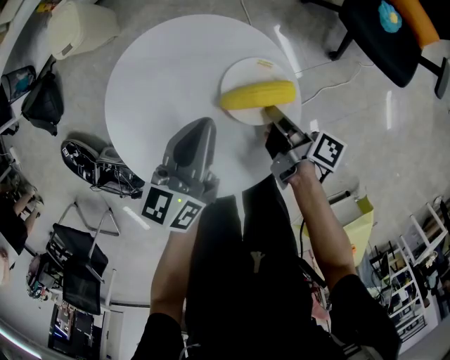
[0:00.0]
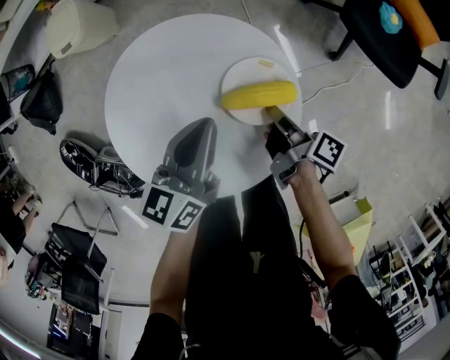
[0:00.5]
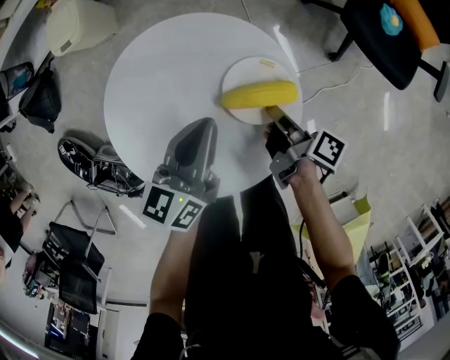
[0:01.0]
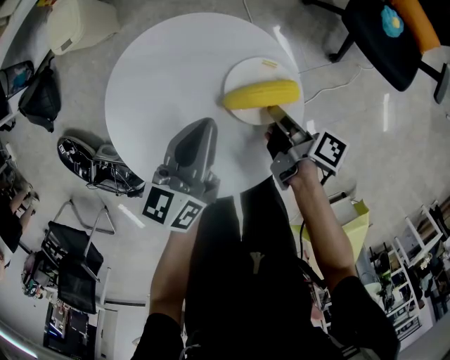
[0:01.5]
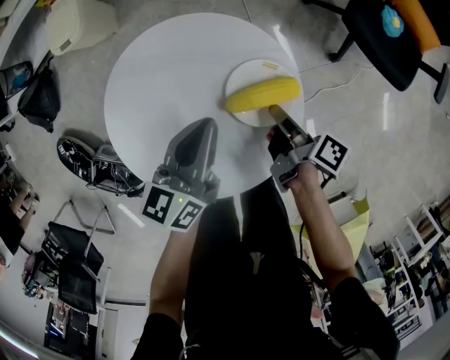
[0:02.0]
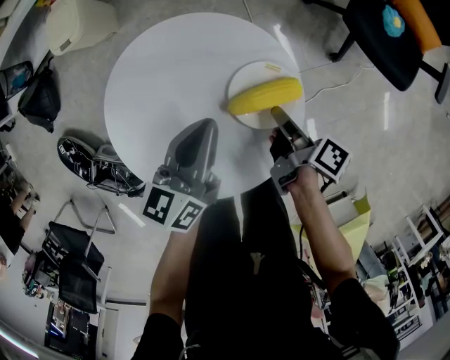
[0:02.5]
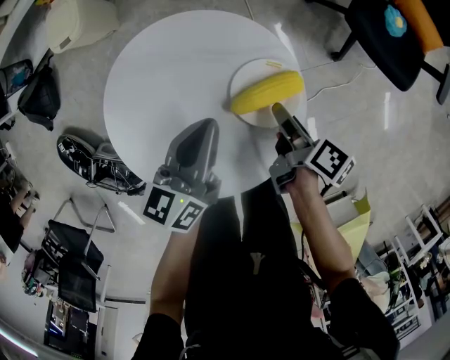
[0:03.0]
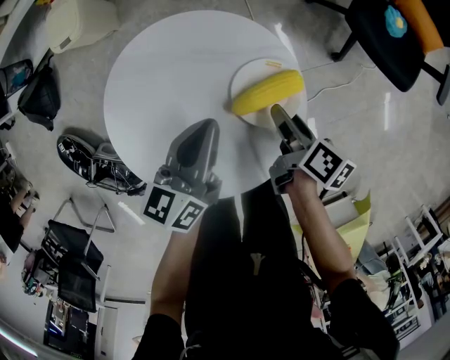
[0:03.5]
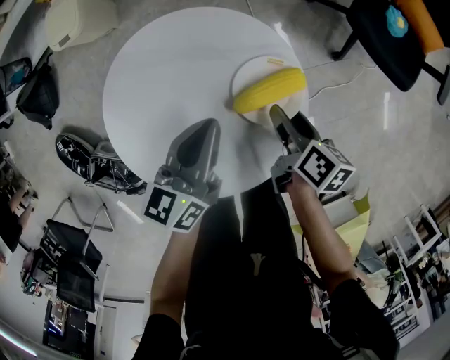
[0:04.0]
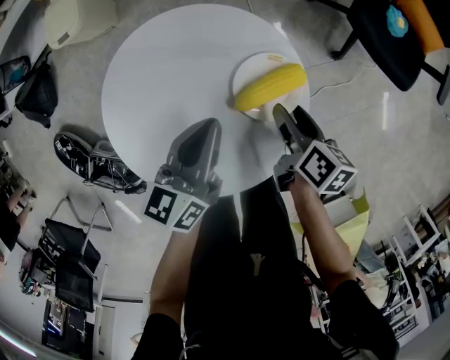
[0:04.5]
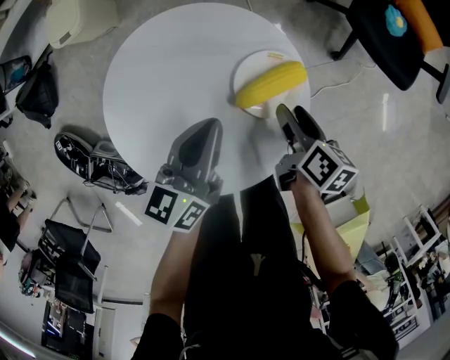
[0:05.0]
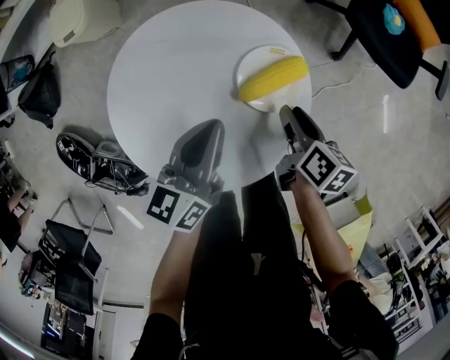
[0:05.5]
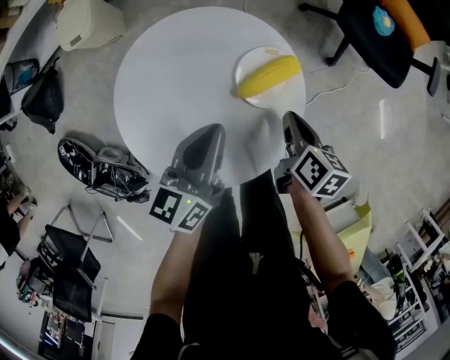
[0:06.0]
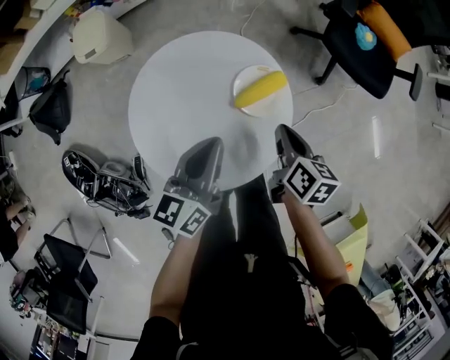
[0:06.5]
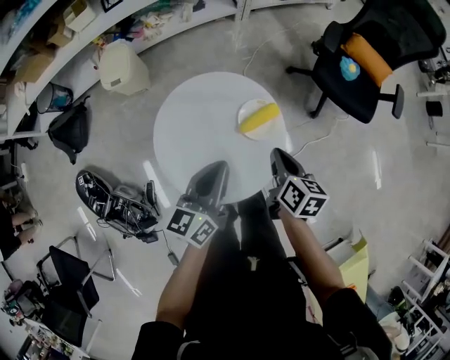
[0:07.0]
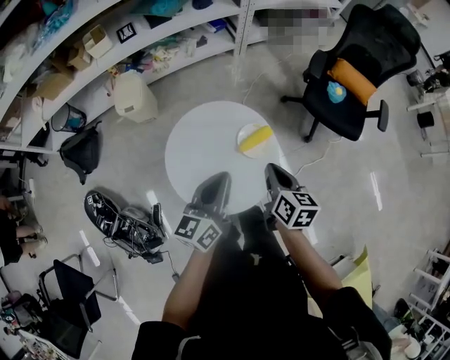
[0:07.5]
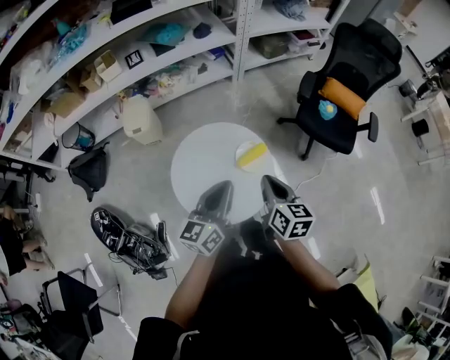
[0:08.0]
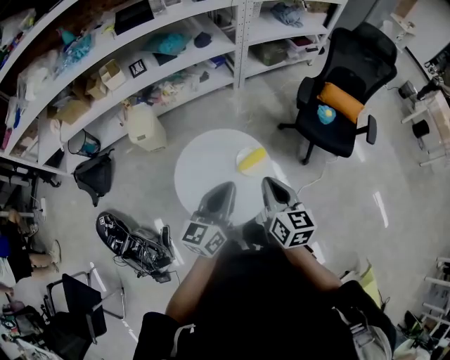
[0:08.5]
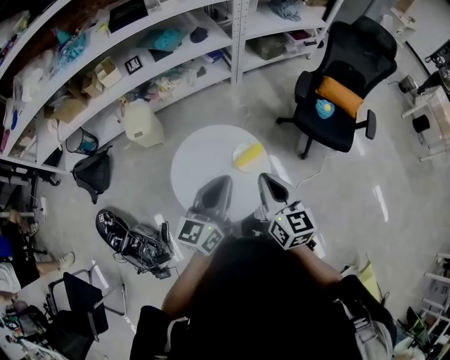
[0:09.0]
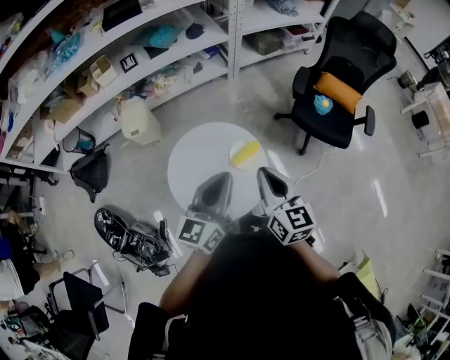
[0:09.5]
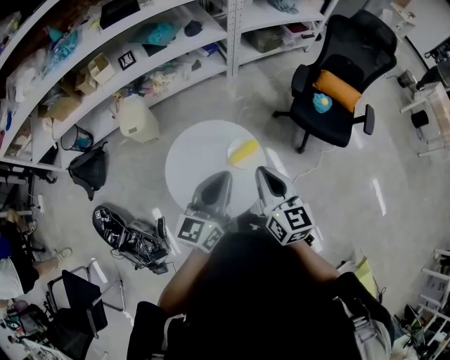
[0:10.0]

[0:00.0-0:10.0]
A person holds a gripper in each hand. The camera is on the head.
0:04.0 to 0:06.0: The left gripper changes place by about 5 cm.
0:06.0 to 0:08.0: The left gripper goes about 25 cm upward.
0:08.0 to 0:10.0: The left gripper moves upward, about 5 cm.

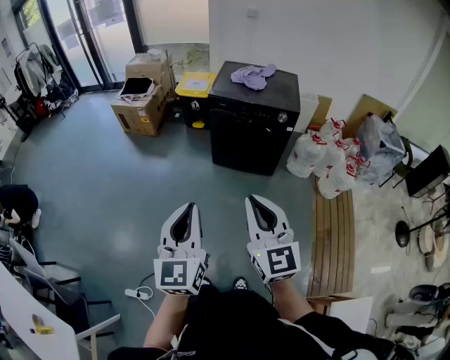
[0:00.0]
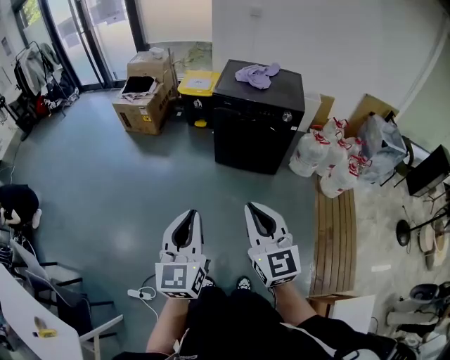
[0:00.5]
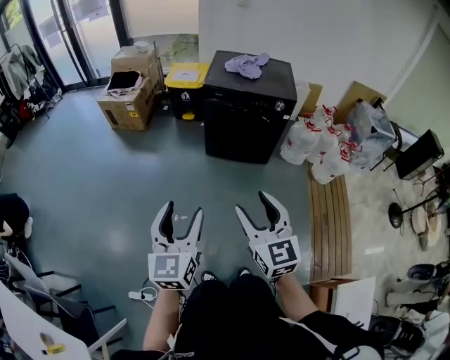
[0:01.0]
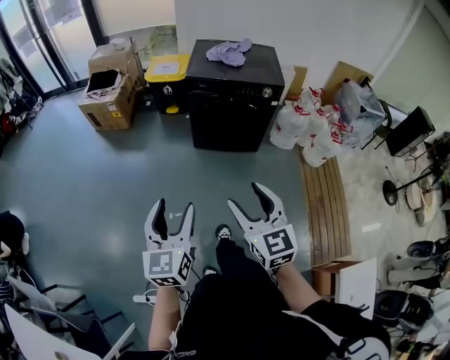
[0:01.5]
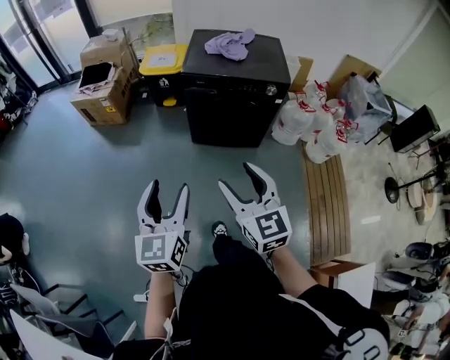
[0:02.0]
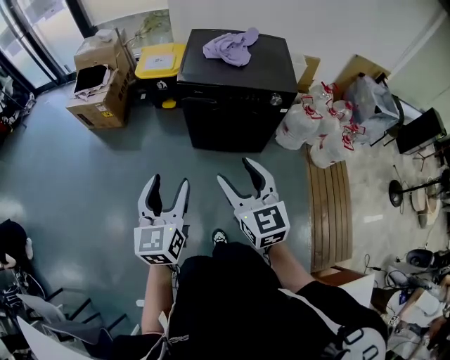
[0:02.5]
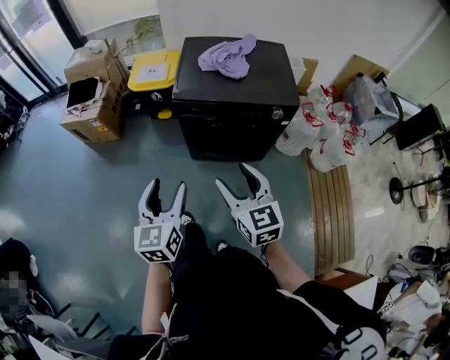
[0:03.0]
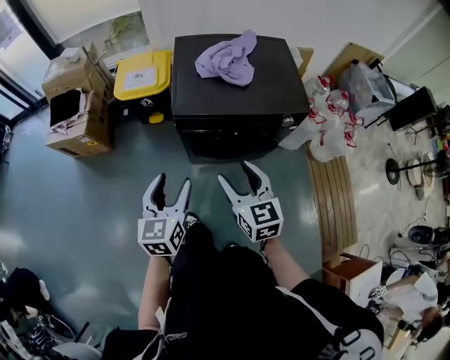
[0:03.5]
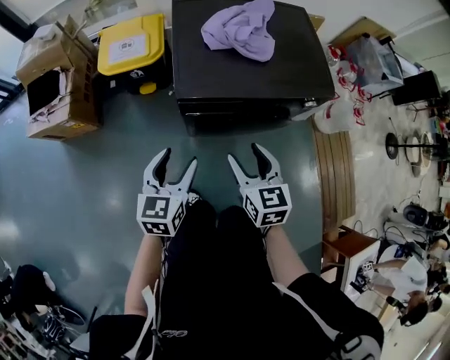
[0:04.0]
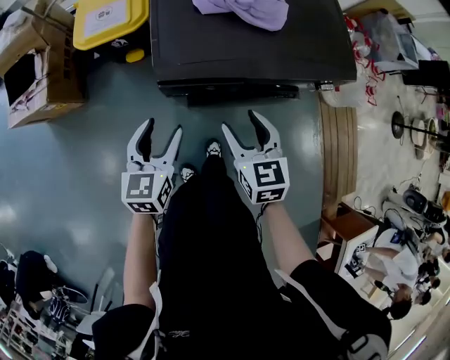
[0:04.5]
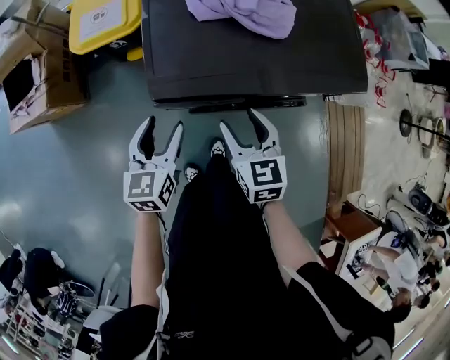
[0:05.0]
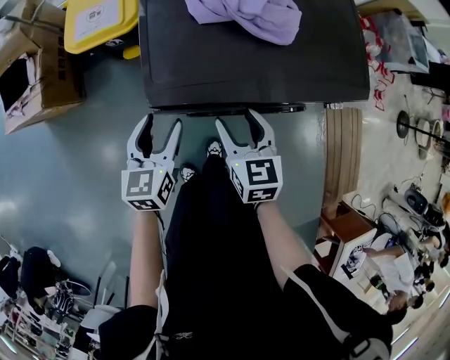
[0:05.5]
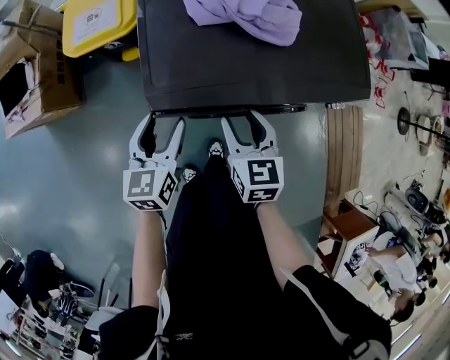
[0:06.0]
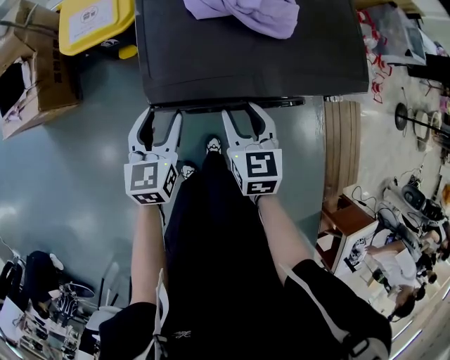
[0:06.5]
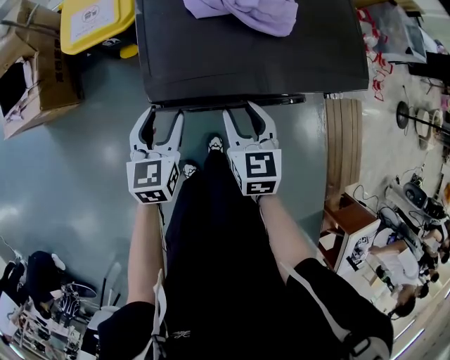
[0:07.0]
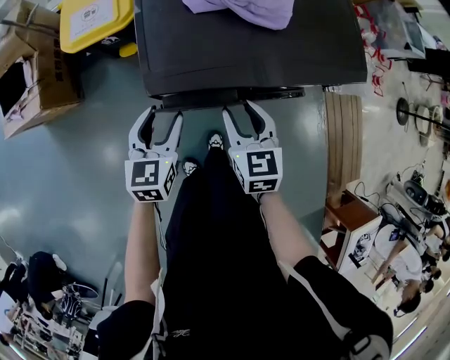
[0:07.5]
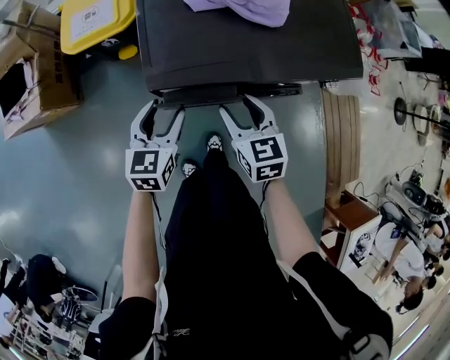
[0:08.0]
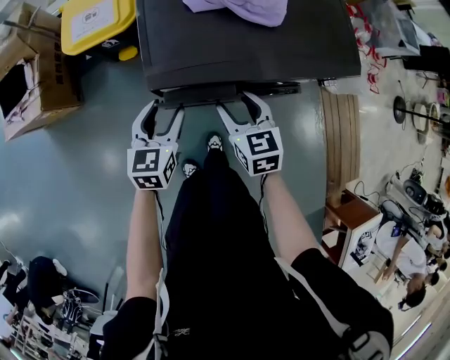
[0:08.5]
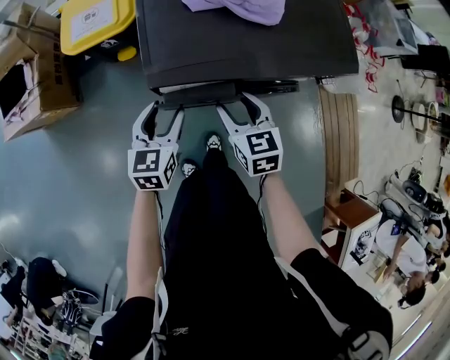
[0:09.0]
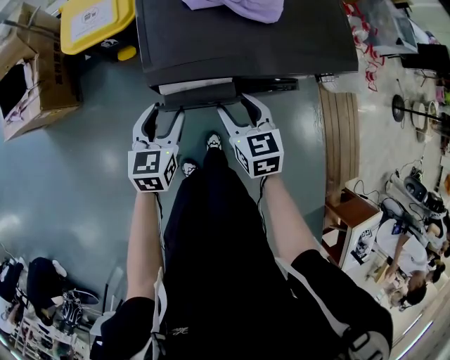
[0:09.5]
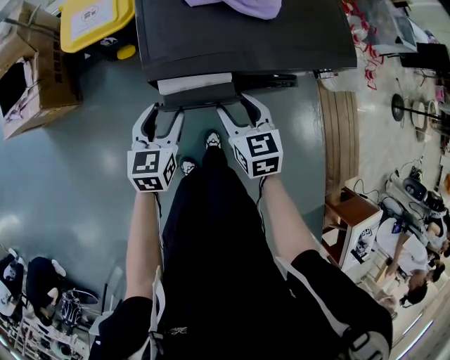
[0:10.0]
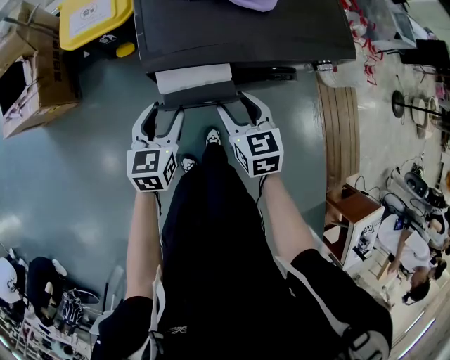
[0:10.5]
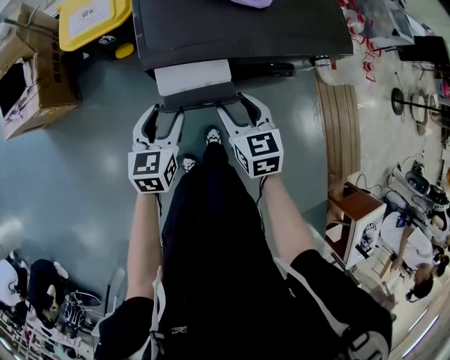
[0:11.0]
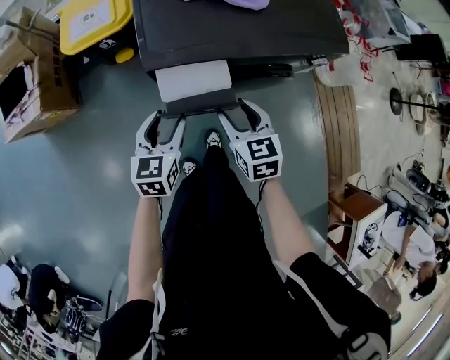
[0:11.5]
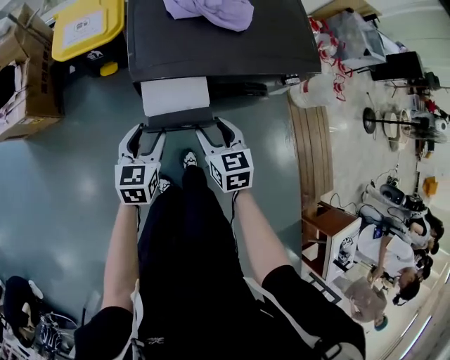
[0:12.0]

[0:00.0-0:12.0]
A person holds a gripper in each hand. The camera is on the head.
0:00.0 to 0:02.0: The left gripper shifts approximately 20 cm forward, and opens; the right gripper is displaced forward and downward by approximately 20 cm, and opens its fingers.
0:02.0 to 0:04.0: The pair of grippers is taken forward, some 50 cm. The left gripper changes its angle by about 30 degrees. Meanwhile the right gripper rotates roughly 30 degrees.
0:04.0 to 0:06.0: The two grippers go approximately 20 cm forward and downward.
0:06.0 to 0:10.0: There are only small adjustments of the grippers.
0:10.0 to 0:12.0: Both grippers travel together backward, approximately 5 cm.

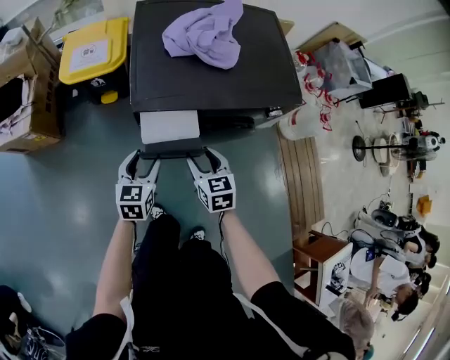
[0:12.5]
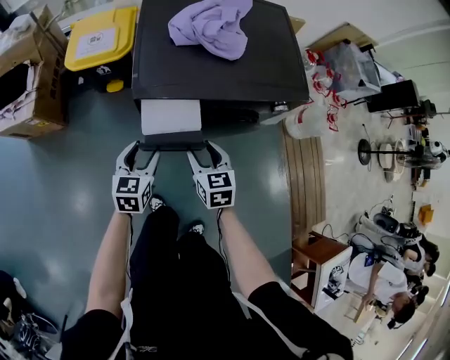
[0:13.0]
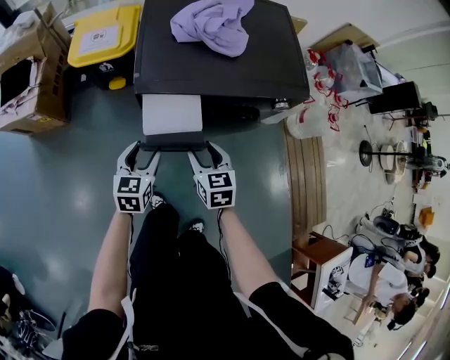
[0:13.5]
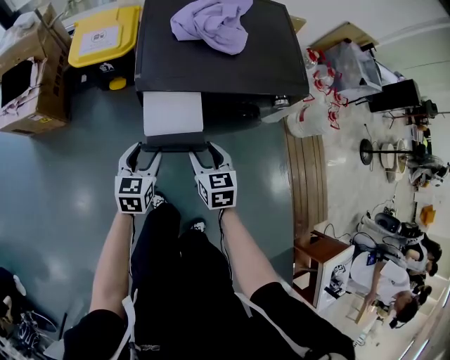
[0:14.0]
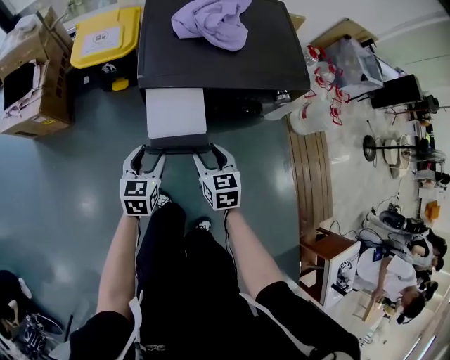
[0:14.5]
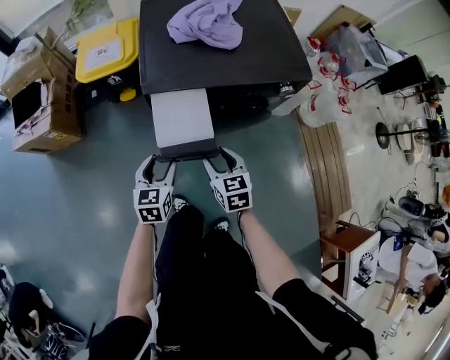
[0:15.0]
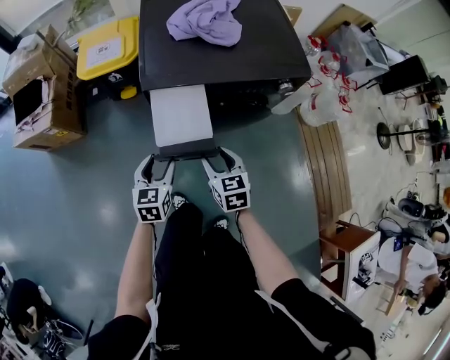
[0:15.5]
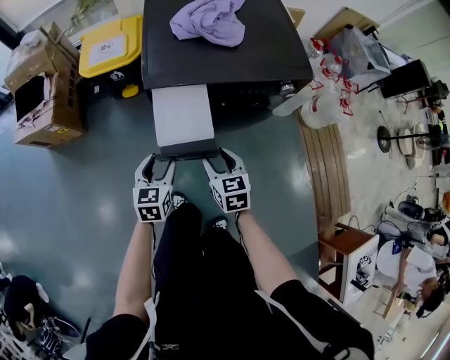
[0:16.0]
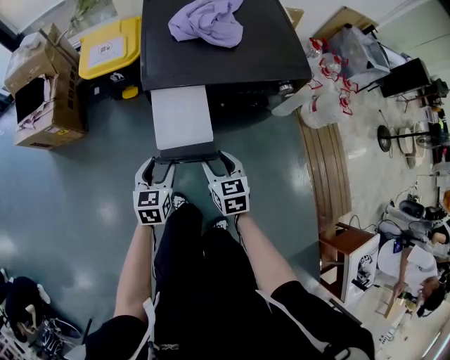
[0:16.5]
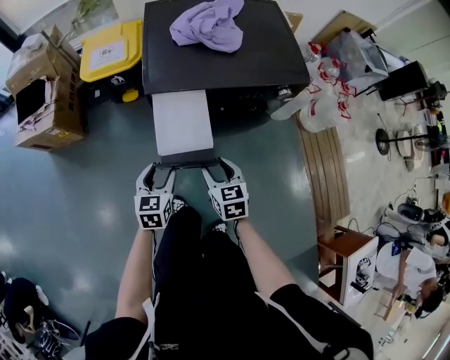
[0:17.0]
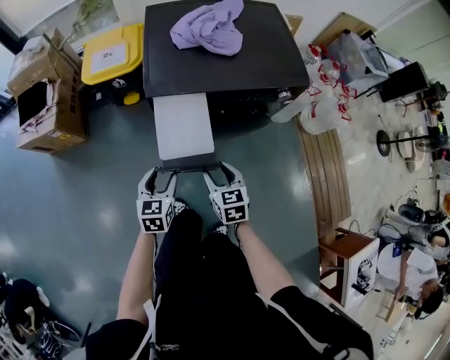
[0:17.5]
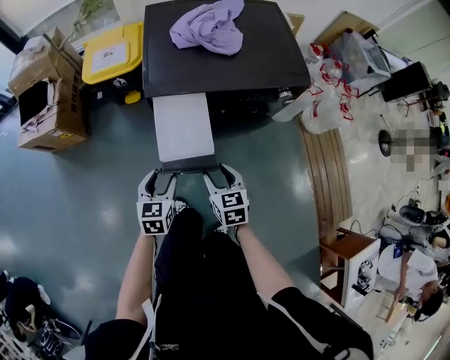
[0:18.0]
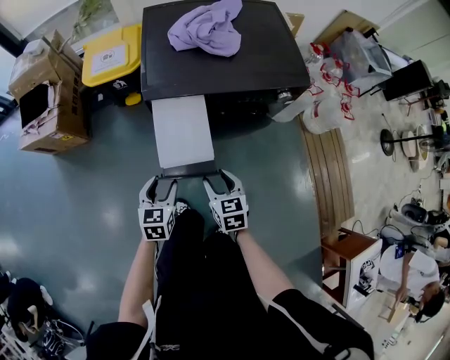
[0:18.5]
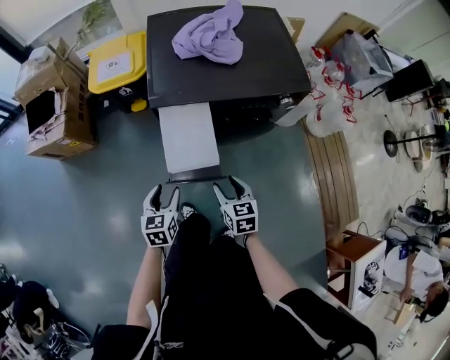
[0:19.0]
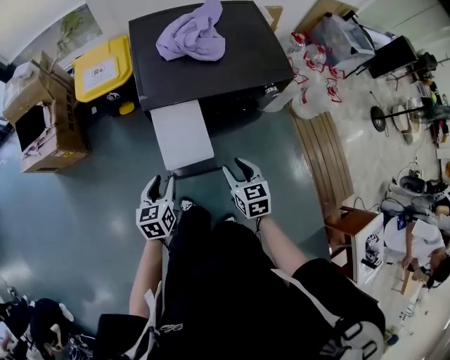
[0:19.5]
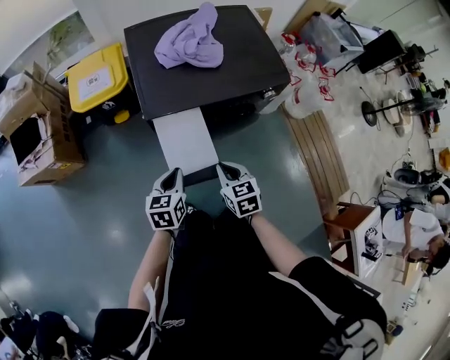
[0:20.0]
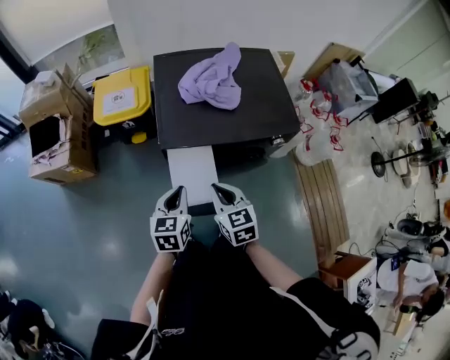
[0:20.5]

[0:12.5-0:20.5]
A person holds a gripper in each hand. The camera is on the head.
0:12.5 to 0:14.5: Both grippers travel together backward, approximately 5 cm.
0:14.5 to 0:16.5: The grippers make only small movements.
0:16.5 to 0:18.5: The grippers make only small movements.
0:18.5 to 0:20.5: The grippers both shift upward and forward by about 20 cm. The right gripper closes, while the left gripper closes.
